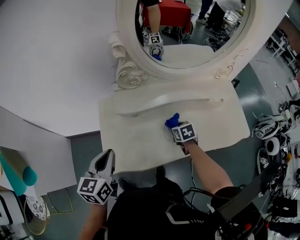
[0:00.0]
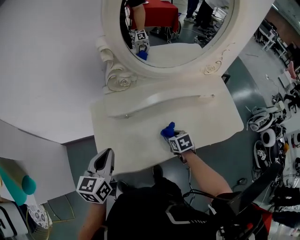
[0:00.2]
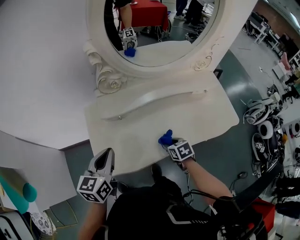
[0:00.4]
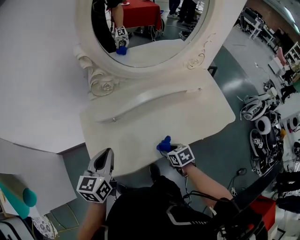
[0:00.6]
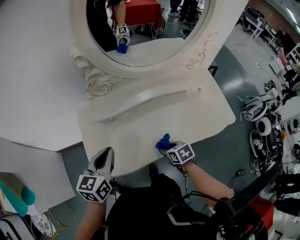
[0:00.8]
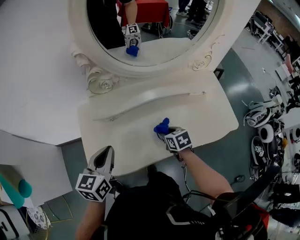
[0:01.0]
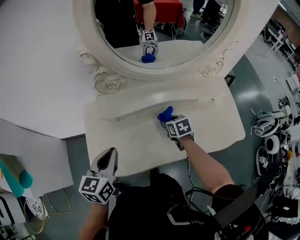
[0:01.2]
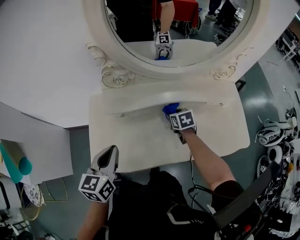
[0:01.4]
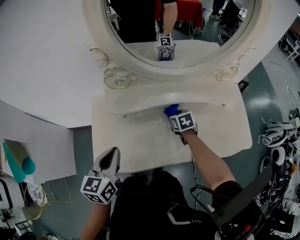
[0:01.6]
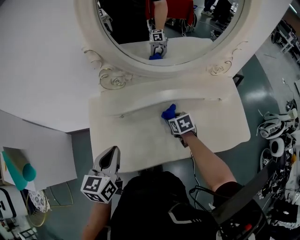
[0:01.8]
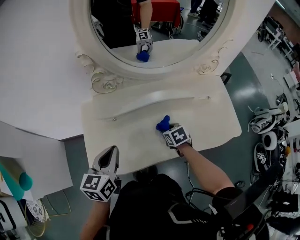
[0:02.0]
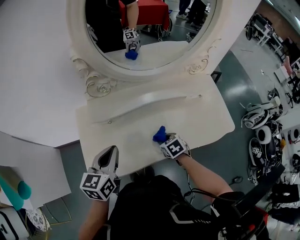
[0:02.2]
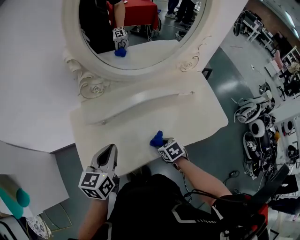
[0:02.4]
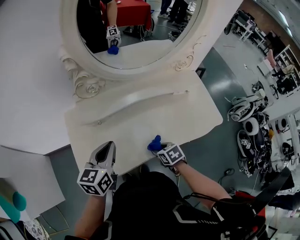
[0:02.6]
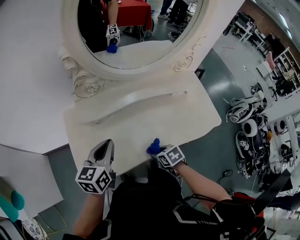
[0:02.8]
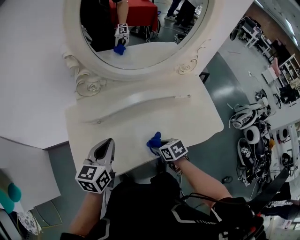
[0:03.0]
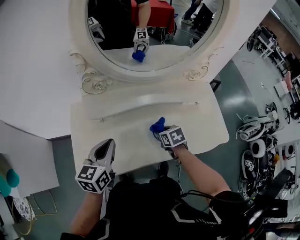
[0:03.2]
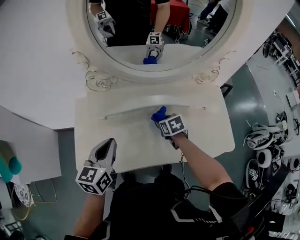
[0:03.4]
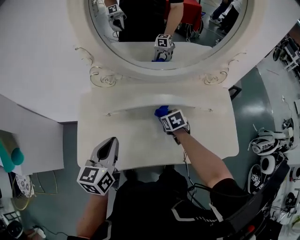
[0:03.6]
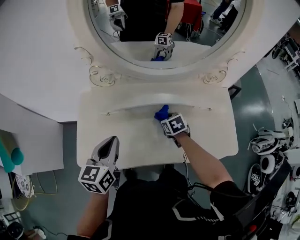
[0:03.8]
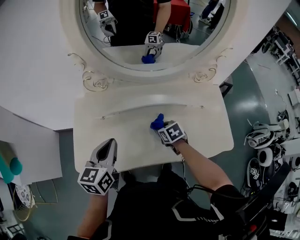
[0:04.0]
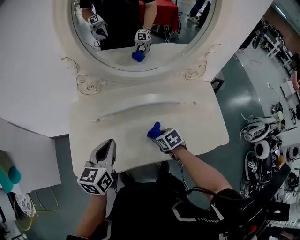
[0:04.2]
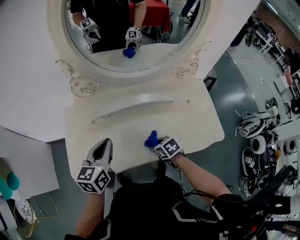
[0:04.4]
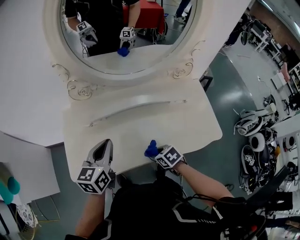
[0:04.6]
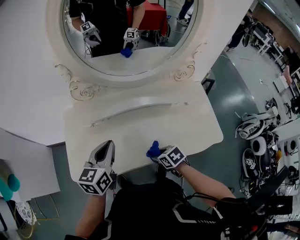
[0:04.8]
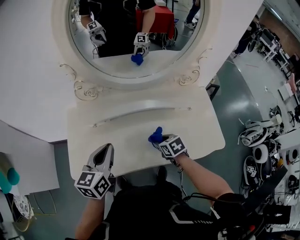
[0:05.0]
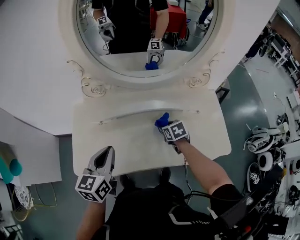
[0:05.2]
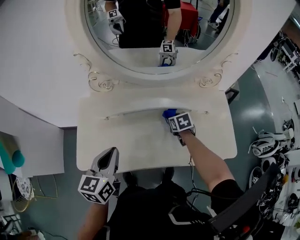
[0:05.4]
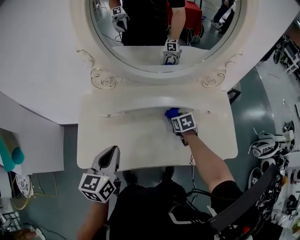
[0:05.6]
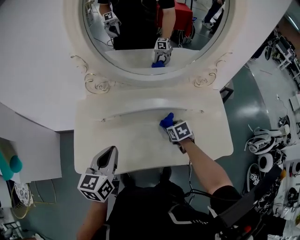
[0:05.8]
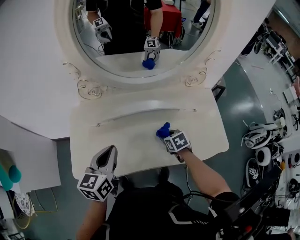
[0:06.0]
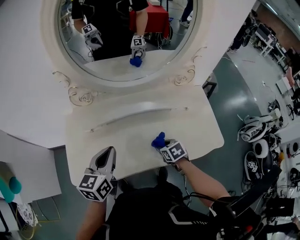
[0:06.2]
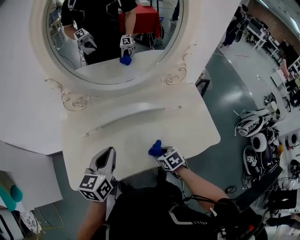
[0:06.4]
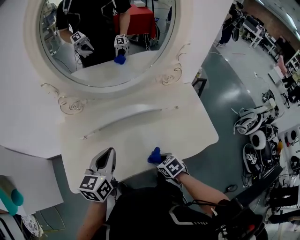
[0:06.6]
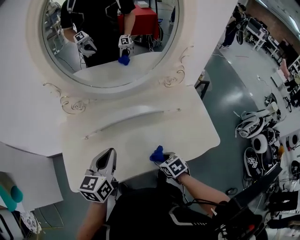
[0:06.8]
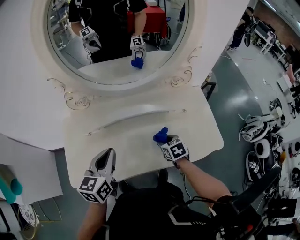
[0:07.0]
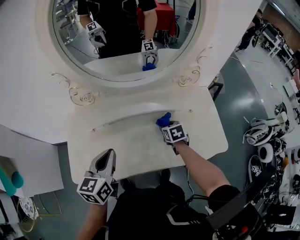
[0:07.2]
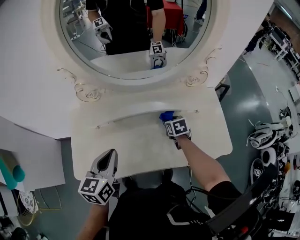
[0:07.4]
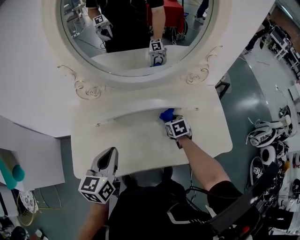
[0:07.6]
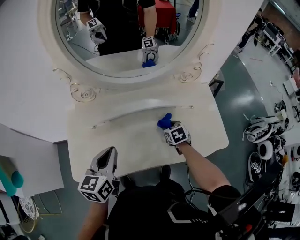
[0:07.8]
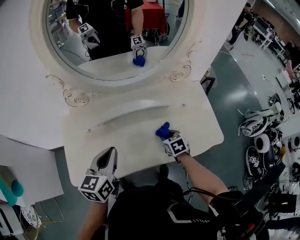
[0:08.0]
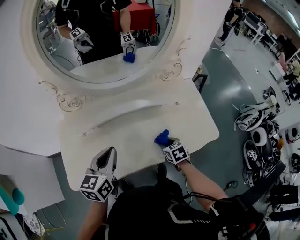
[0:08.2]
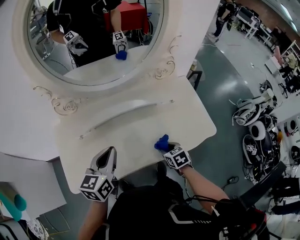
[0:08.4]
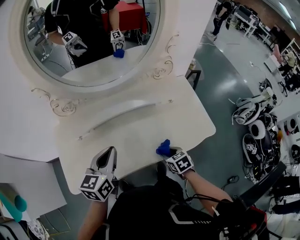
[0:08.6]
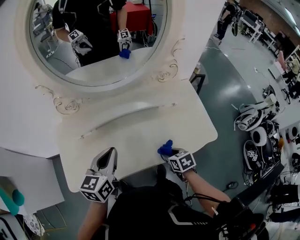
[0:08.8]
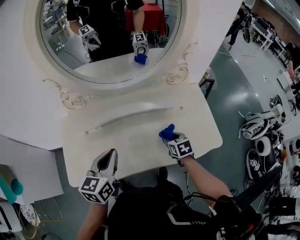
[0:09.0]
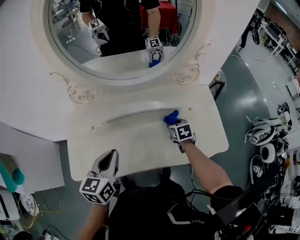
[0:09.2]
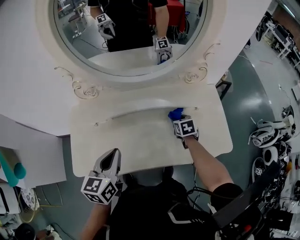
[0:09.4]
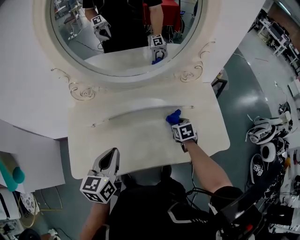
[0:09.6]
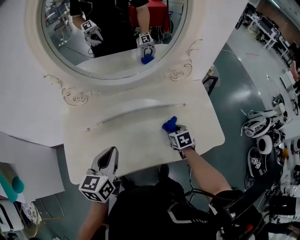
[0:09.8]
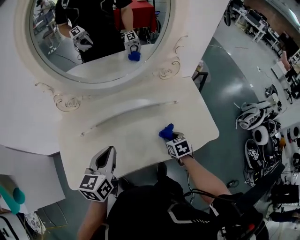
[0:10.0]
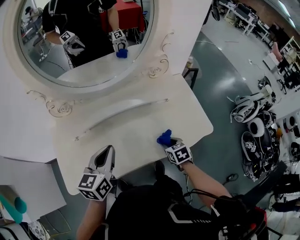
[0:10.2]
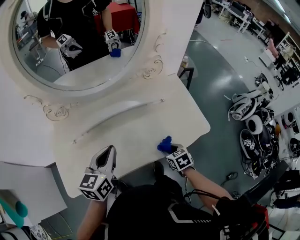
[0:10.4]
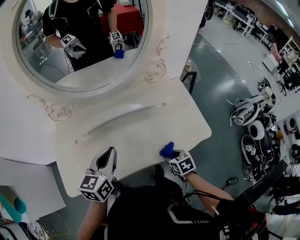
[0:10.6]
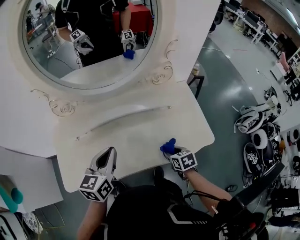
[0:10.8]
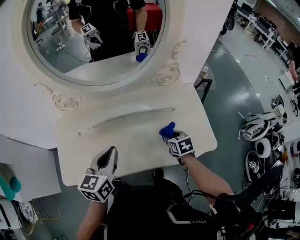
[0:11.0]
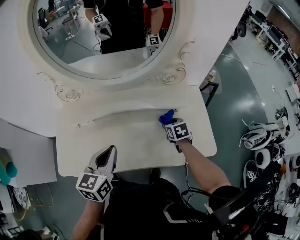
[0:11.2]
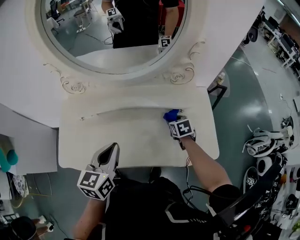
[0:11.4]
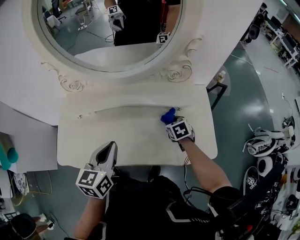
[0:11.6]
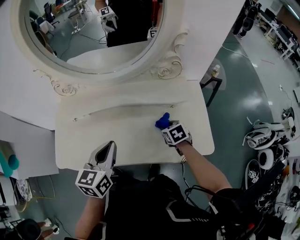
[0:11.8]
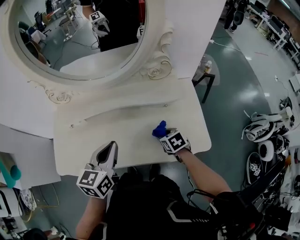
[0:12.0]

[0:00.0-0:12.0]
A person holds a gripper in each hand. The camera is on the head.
0:00.0 to 0:01.6: The right gripper heads to the right, covering some 5 cm, and travels backward and back again, about 15 cm each way. The left gripper shifts some 10 cm to the right.
0:01.6 to 0:03.0: The right gripper travels backward by about 20 cm. The left gripper goes some 5 cm to the right.
0:03.0 to 0:04.4: The right gripper goes forward and returns, roughly 20 cm each way.
0:04.4 to 0:06.0: The right gripper moves forward and backward over roughly 20 cm, changing direction 2 times.
0:06.0 to 0:07.6: The right gripper moves forward, roughly 10 cm.
0:07.6 to 0:09.0: The left gripper goes some 5 cm to the right. The right gripper moves backward and to the right, approximately 10 cm.
0:09.0 to 0:10.4: The left gripper shifts about 5 cm to the right, while the right gripper is displaced backward by approximately 10 cm.
0:10.4 to 0:12.0: The right gripper is displaced forward by roughly 10 cm; the left gripper shifts about 10 cm to the right.

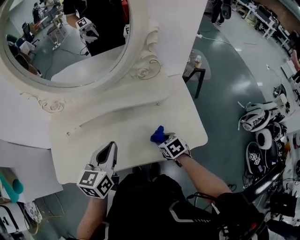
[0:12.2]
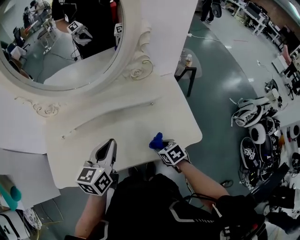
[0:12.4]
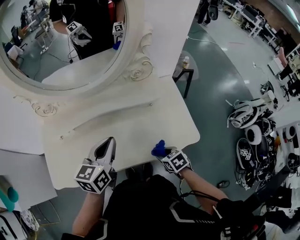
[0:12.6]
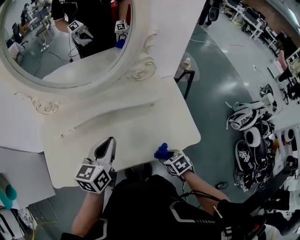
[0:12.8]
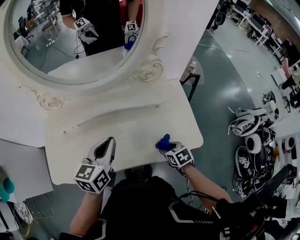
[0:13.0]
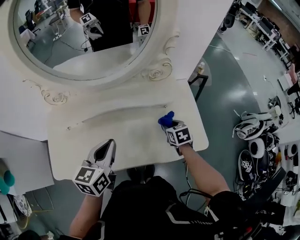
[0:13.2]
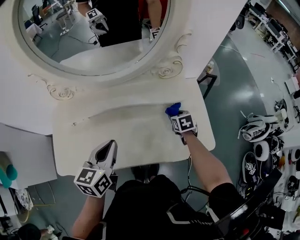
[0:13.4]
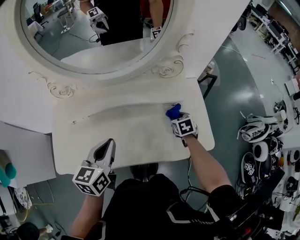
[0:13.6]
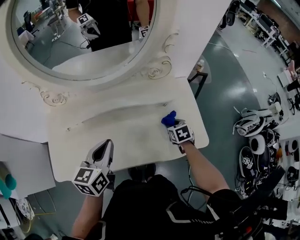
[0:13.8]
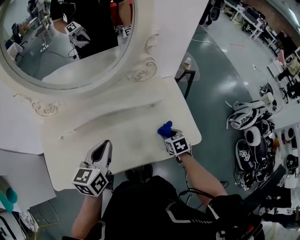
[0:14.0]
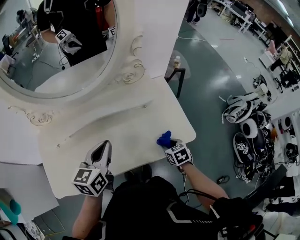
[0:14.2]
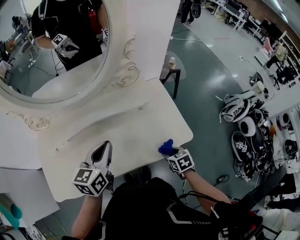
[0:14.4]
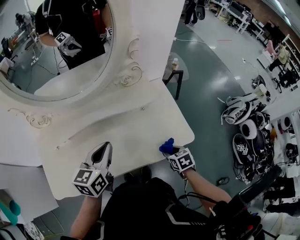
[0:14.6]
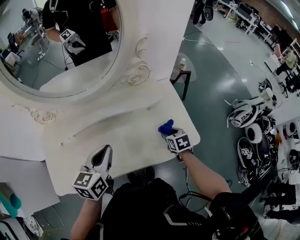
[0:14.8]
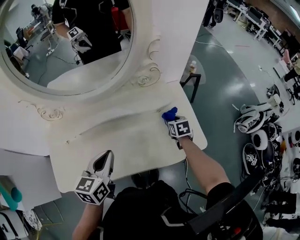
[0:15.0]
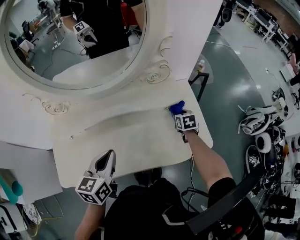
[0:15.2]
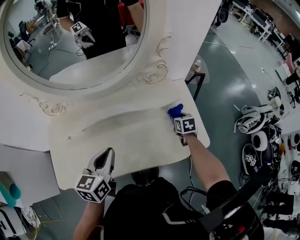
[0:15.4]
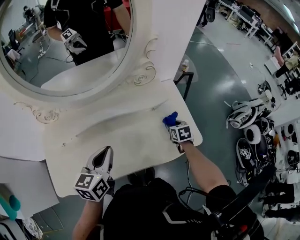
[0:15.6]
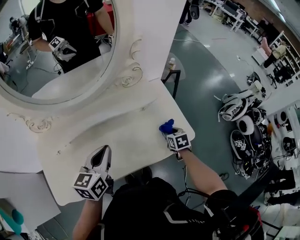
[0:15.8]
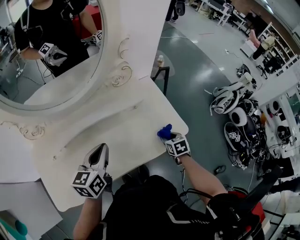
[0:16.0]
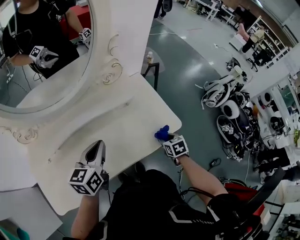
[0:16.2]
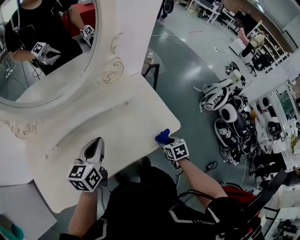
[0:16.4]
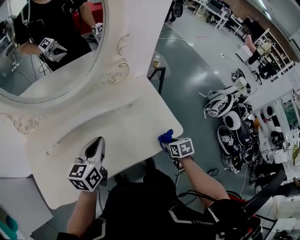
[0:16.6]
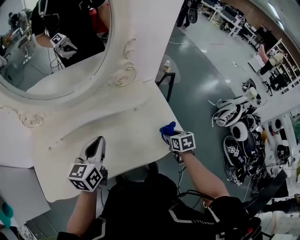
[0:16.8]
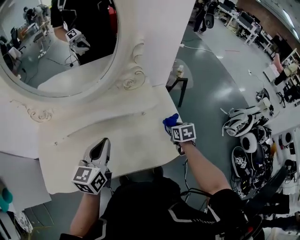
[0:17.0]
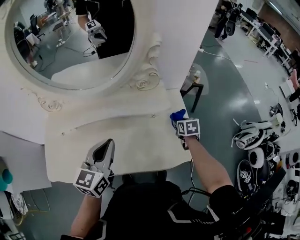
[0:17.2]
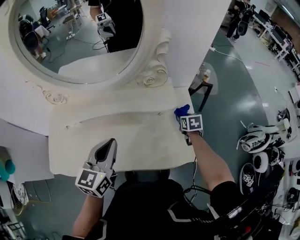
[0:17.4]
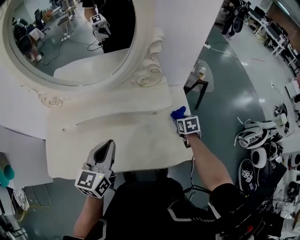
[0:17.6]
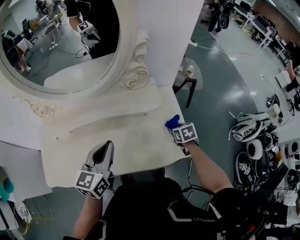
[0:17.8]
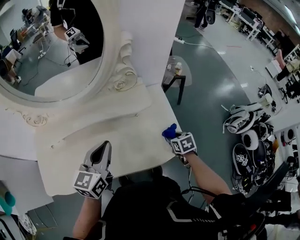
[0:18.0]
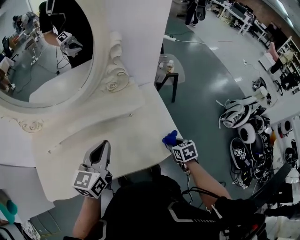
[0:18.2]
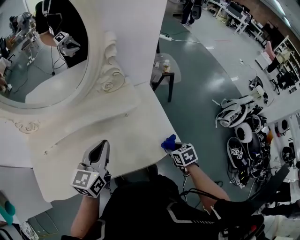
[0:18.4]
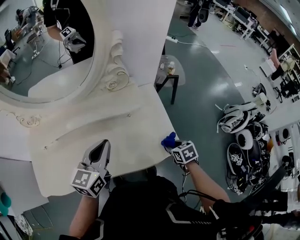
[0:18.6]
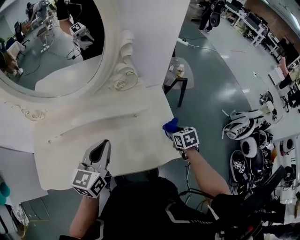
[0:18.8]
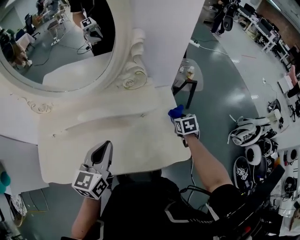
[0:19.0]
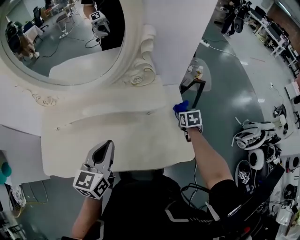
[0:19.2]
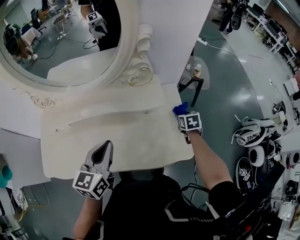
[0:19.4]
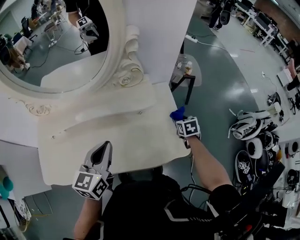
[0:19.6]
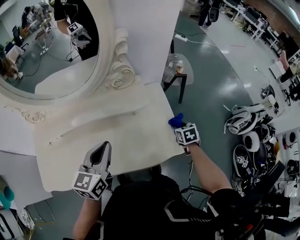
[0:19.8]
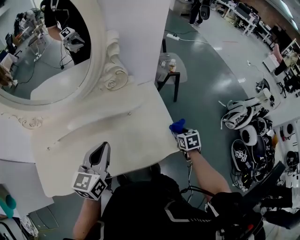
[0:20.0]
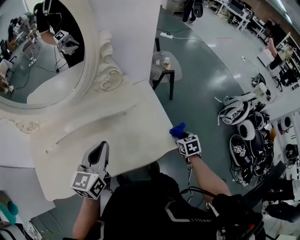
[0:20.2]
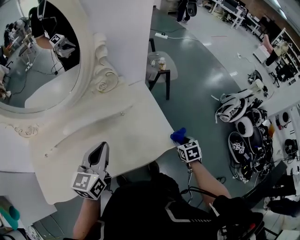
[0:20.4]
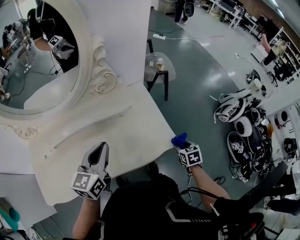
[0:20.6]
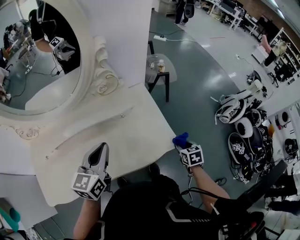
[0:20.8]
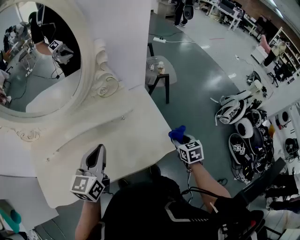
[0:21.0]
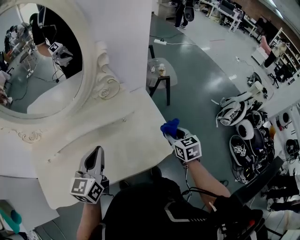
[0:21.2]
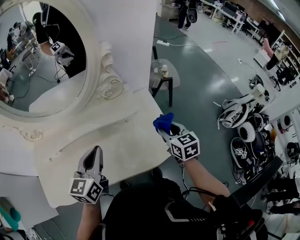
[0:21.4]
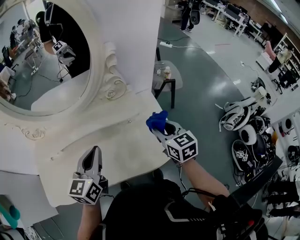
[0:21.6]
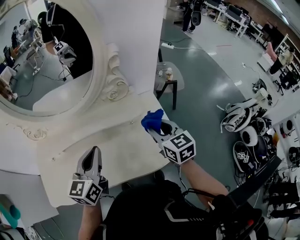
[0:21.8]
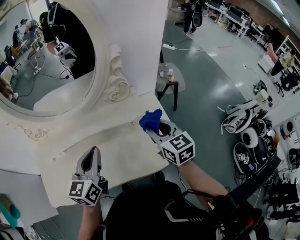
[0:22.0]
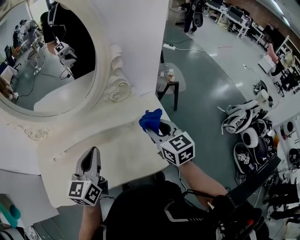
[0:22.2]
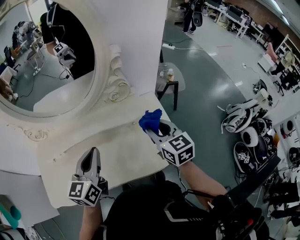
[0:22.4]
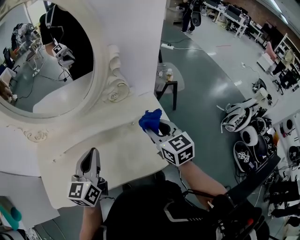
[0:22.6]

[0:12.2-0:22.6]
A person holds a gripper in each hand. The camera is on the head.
0:12.2 to 0:13.6: The right gripper travels forward by some 10 cm. The left gripper shifts about 5 cm to the left.
0:13.6 to 0:15.2: The left gripper moves roughly 10 cm to the right and comes back. The right gripper heads to the right, covering about 5 cm, and reaches about 20 cm backward, then returns.
0:15.2 to 0:16.6: The right gripper moves backward and to the right, some 25 cm; the left gripper moves forward, approximately 5 cm.
0:16.6 to 0:18.2: The right gripper reaches about 25 cm forward, then returns, while the left gripper is displaced to the right by roughly 5 cm.
0:18.2 to 0:19.6: The right gripper goes about 15 cm forward.
0:19.6 to 0:21.2: The right gripper moves backward and upward, roughly 15 cm.
0:21.2 to 0:22.6: The right gripper moves to the left and upward, roughly 20 cm, and rotates roughly 20 degrees. The left gripper changes place by approximately 5 cm.

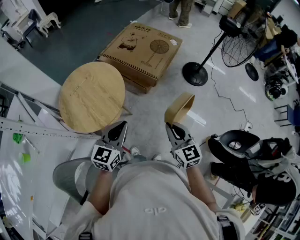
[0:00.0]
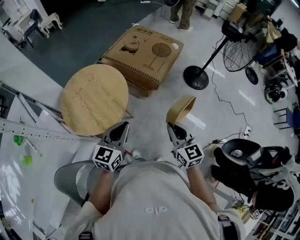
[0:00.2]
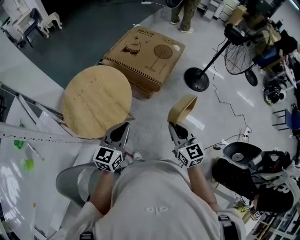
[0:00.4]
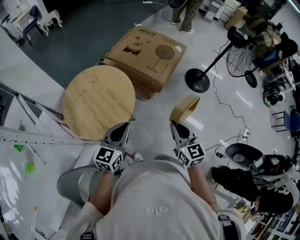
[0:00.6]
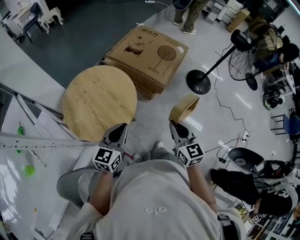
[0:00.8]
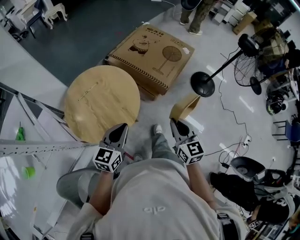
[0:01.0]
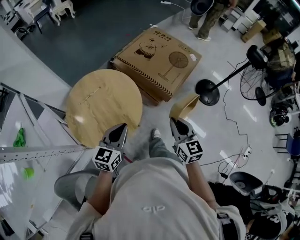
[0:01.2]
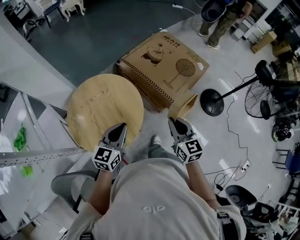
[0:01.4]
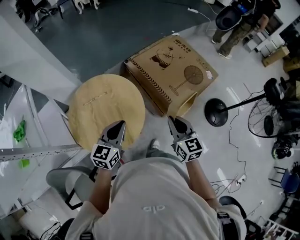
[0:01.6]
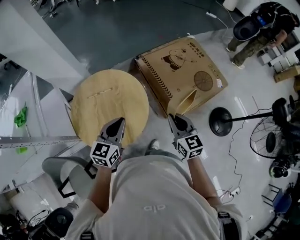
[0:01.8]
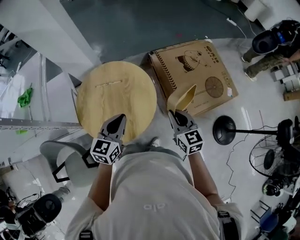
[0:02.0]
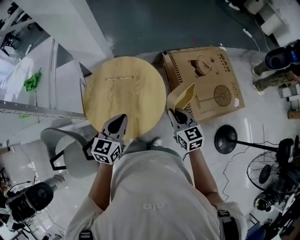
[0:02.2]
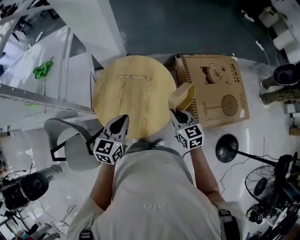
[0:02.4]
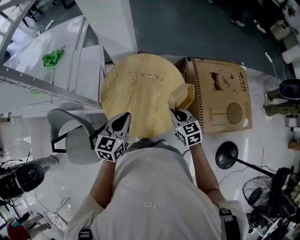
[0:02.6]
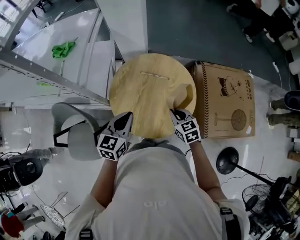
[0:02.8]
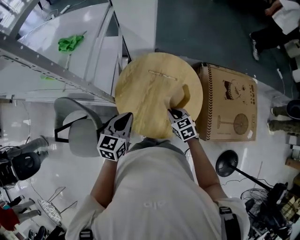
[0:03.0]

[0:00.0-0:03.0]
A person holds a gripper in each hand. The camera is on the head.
0:00.0 to 0:01.6: The right gripper goes about 40 cm forward; the left gripper travels forward and to the left by roughly 35 cm, and turns by approximately 20 degrees.
0:01.6 to 0:03.0: The right gripper changes place by approximately 40 cm, and changes its angle by approximately 60 degrees; the left gripper changes place by approximately 30 cm, and changes its angle by some 40 degrees.
